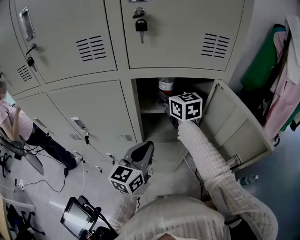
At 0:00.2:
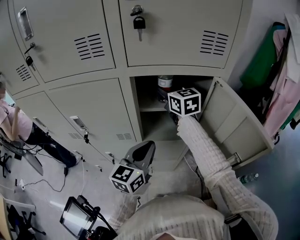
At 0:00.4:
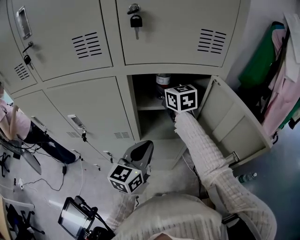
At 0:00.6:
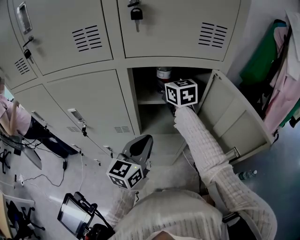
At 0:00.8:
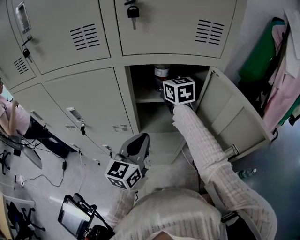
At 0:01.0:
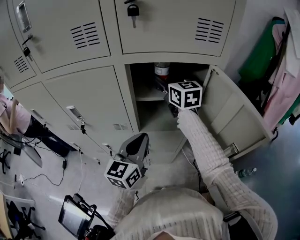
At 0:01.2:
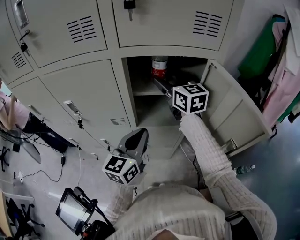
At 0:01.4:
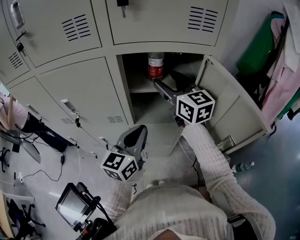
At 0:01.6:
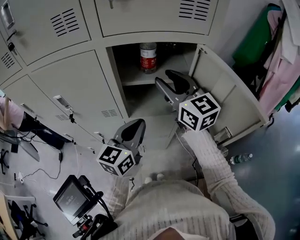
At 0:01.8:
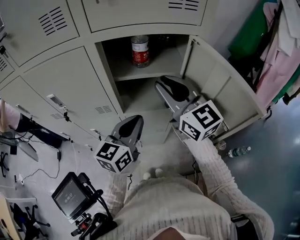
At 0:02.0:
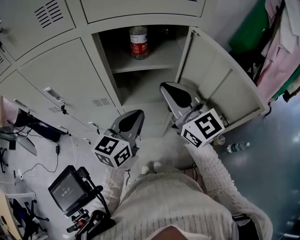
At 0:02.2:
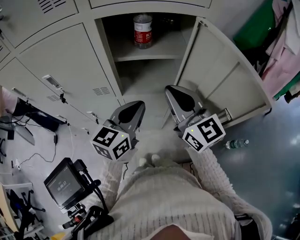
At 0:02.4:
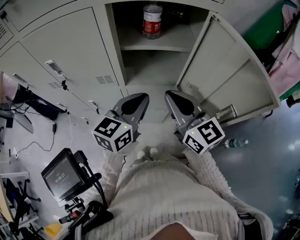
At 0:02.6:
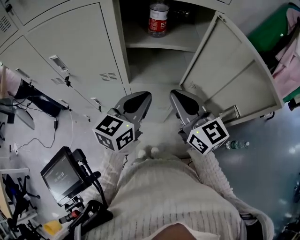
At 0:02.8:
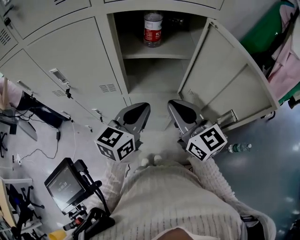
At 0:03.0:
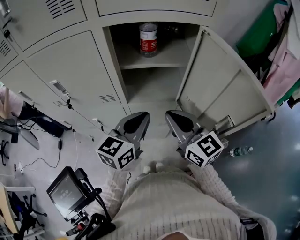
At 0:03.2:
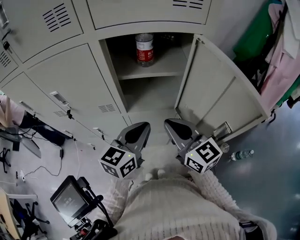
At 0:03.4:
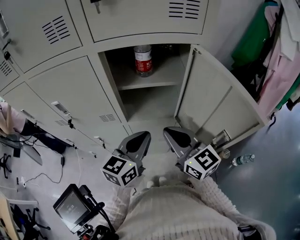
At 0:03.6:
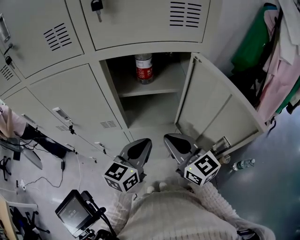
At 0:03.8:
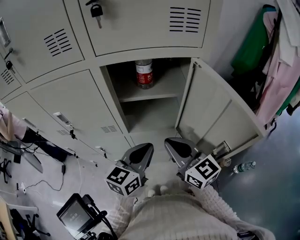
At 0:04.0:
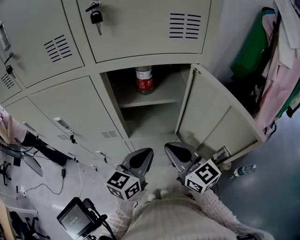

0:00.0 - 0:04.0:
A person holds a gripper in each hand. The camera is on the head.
0:00.0 - 0:01.4: The right gripper travels backward by roughly 10 cm.
0:01.4 - 0:02.6: The right gripper heads backward and downward, covering some 20 cm, and closes.
0:02.6 - 0:04.0: The grippers make only small movements.

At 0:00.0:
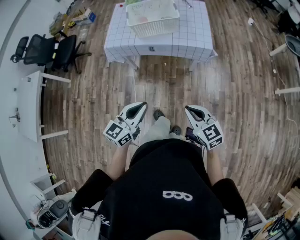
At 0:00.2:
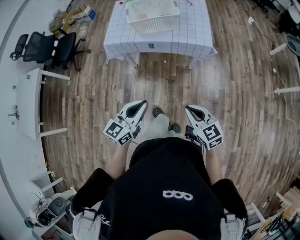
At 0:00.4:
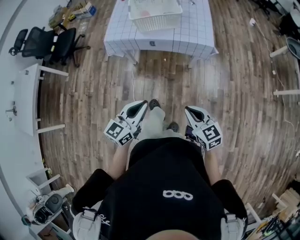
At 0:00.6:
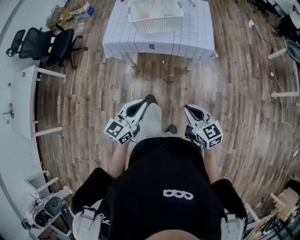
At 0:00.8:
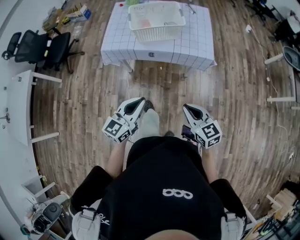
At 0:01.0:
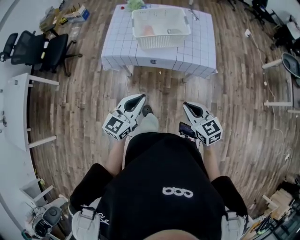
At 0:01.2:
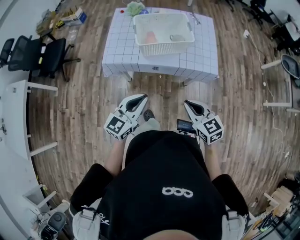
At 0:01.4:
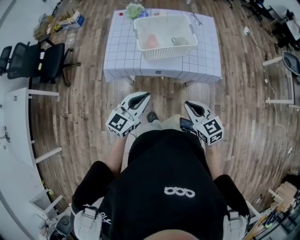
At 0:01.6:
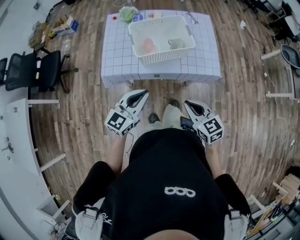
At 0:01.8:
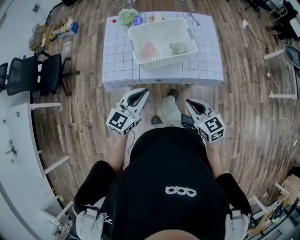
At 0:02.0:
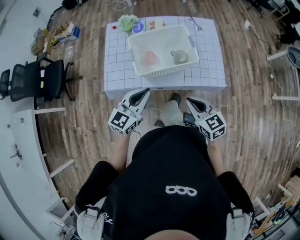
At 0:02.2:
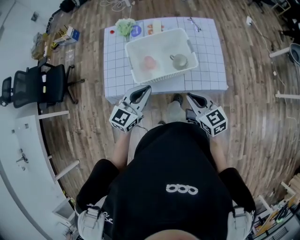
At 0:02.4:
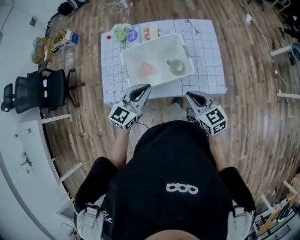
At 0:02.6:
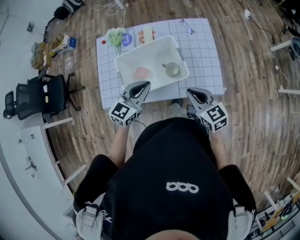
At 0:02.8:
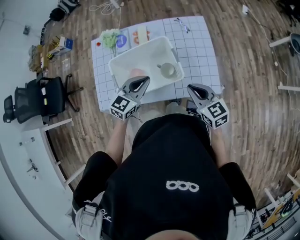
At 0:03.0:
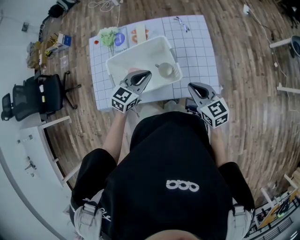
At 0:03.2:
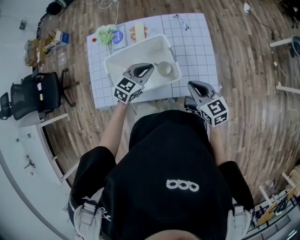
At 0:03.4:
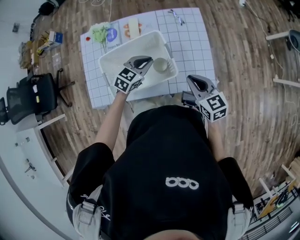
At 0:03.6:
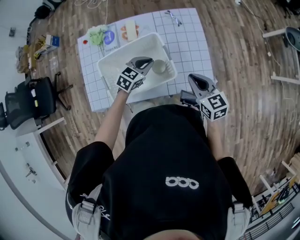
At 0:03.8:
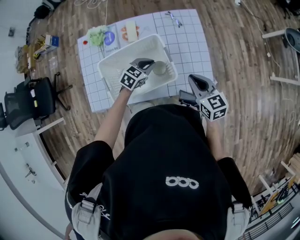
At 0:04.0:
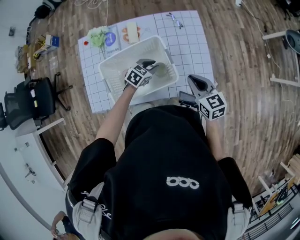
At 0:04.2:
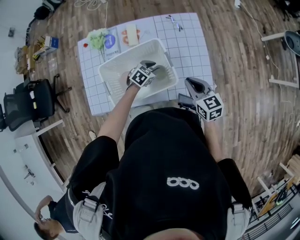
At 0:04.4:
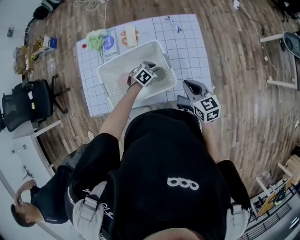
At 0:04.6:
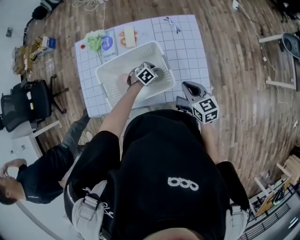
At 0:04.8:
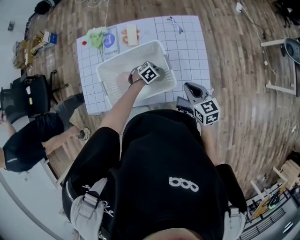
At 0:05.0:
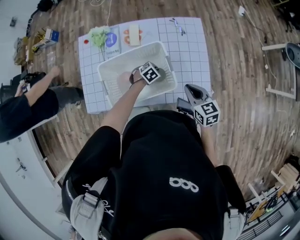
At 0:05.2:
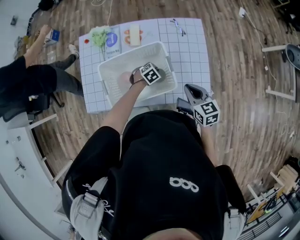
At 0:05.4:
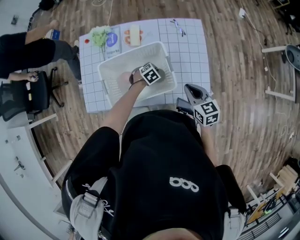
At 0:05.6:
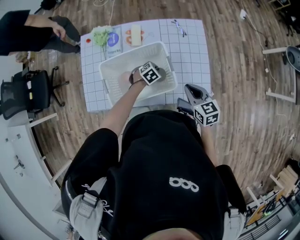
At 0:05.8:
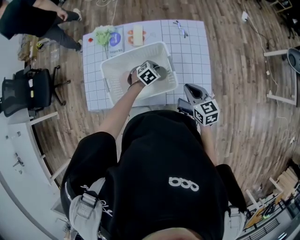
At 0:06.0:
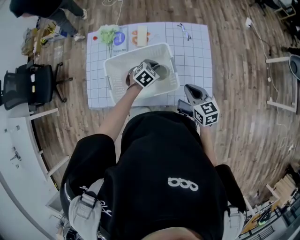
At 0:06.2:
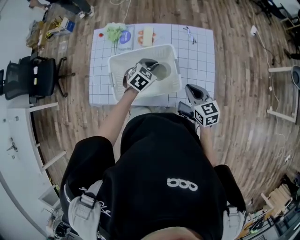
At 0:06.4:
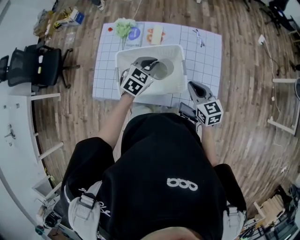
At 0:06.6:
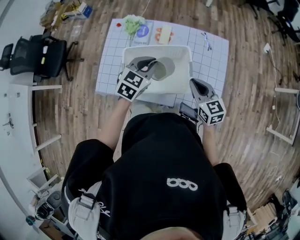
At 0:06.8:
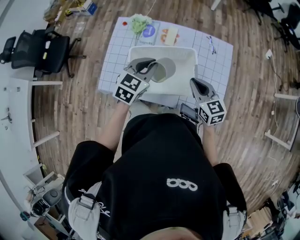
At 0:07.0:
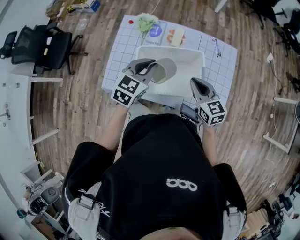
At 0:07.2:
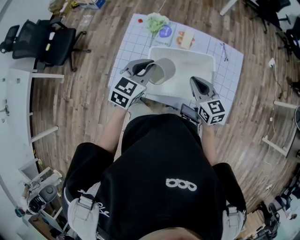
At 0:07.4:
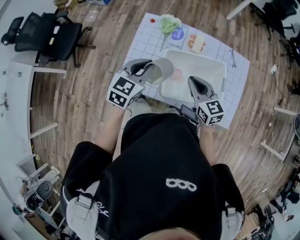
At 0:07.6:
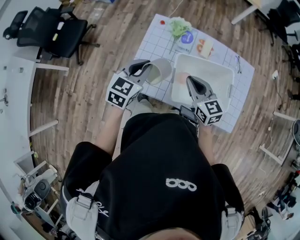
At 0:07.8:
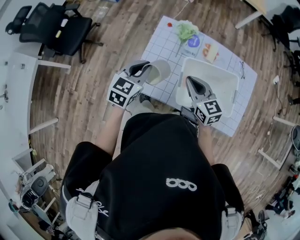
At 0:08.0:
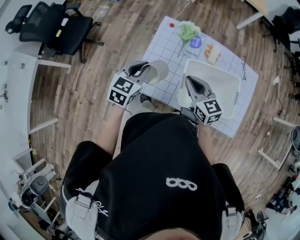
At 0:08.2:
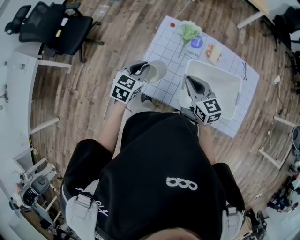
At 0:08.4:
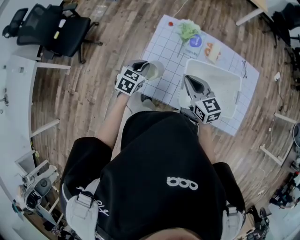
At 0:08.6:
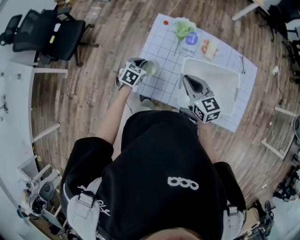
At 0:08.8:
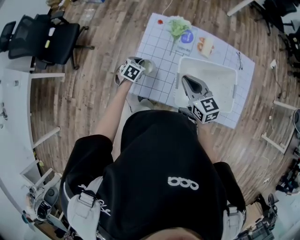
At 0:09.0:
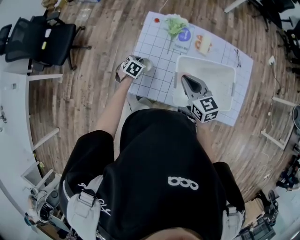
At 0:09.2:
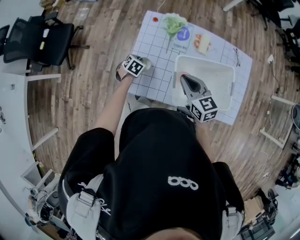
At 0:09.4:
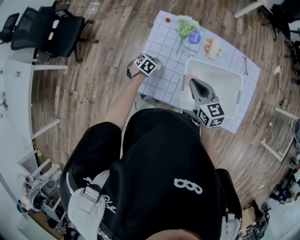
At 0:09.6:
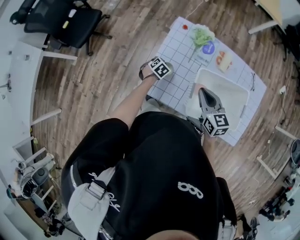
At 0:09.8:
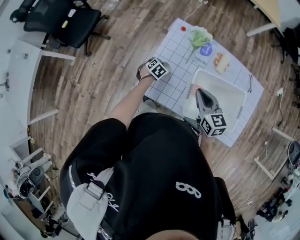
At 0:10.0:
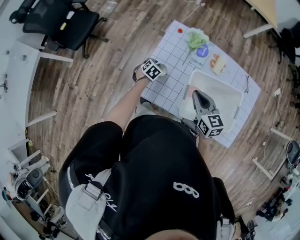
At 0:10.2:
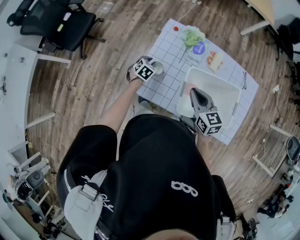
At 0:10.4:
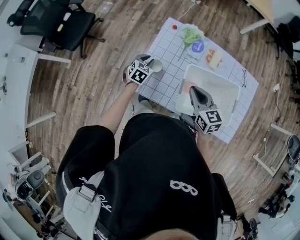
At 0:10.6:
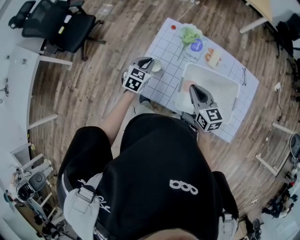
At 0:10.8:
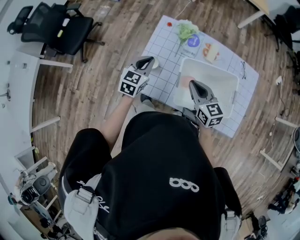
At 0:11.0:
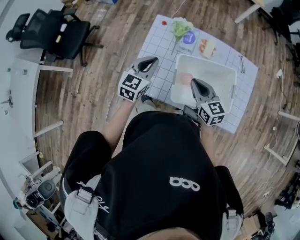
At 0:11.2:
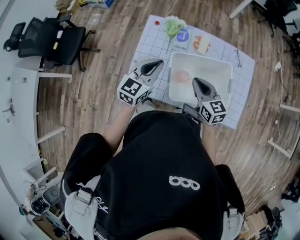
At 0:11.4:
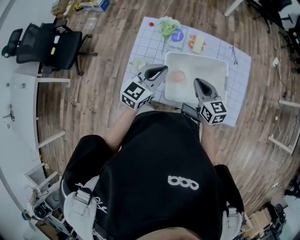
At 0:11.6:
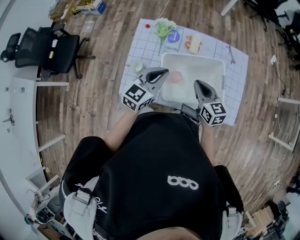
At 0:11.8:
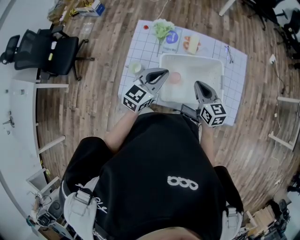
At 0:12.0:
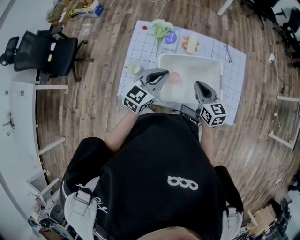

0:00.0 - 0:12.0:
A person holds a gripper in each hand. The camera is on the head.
0:00.0 - 0:01.6: The right gripper travels forward and to the left by roughly 30 cm. Meanwhile the left gripper moves forward, about 35 cm.
0:01.6 - 0:03.0: The grippers both shift forward by approximately 30 cm. The left gripper swivels roughly 20 degrees.
0:03.0 - 0:04.4: The right gripper moves approximately 5 cm, while the left gripper travels downward and forward by some 25 cm, tilts its fingers approximately 30 degrees downward, and opens its fingers.
0:04.4 - 0:06.0: The left gripper is displaced upward by approximately 10 cm.
0:06.0 - 0:07.6: The right gripper heads to the left, covering roughly 35 cm, and changes its angle by about 20 degrees. The left gripper shifts some 40 cm to the left and upward, and rotates approximately 40 degrees.
0:07.6 - 0:09.0: The left gripper travels downward by some 30 cm, and tilts its fingers roughly 30 degrees downward. Meanwhile the right gripper changes place by about 5 cm.
0:09.0 - 0:10.4: The left gripper moves upward, roughly 10 cm.
0:10.4 - 0:12.0: The right gripper is displaced to the right by roughly 15 cm. Meanwhile the left gripper shifts about 30 cm to the right, upward and backward, and angles its fingers upward, by some 30 degrees.

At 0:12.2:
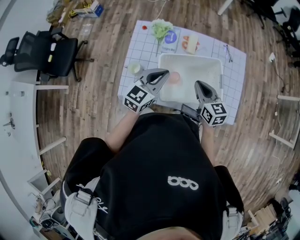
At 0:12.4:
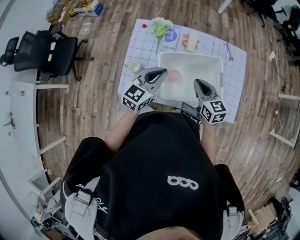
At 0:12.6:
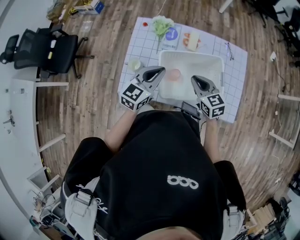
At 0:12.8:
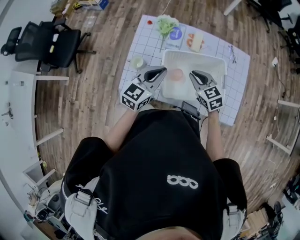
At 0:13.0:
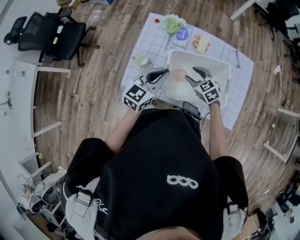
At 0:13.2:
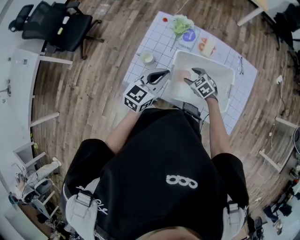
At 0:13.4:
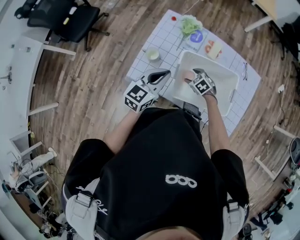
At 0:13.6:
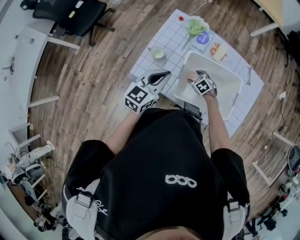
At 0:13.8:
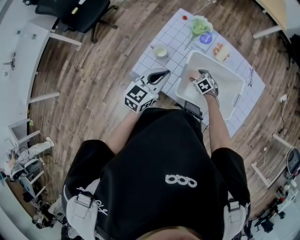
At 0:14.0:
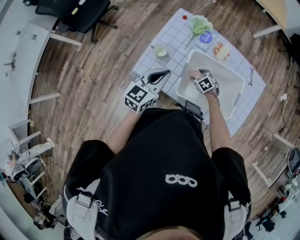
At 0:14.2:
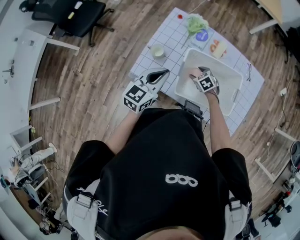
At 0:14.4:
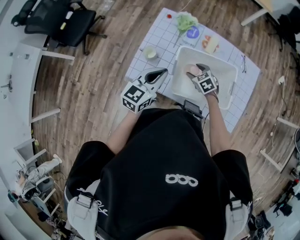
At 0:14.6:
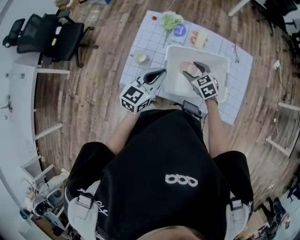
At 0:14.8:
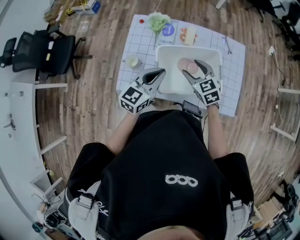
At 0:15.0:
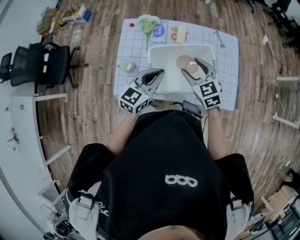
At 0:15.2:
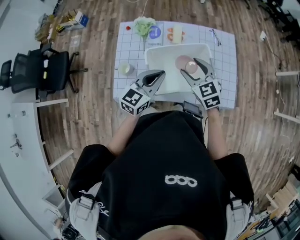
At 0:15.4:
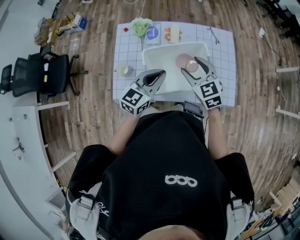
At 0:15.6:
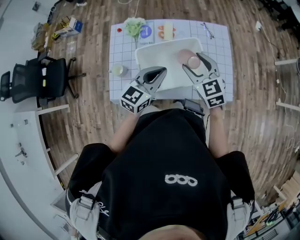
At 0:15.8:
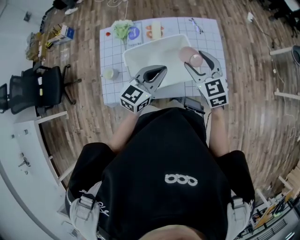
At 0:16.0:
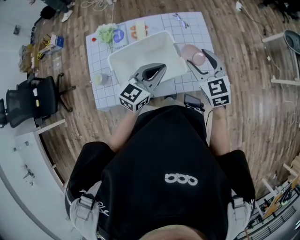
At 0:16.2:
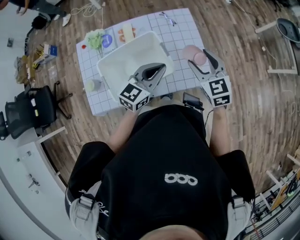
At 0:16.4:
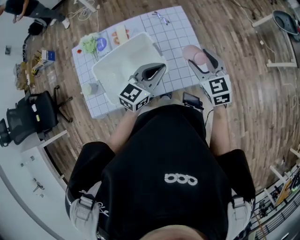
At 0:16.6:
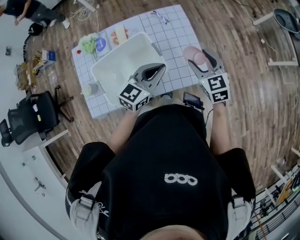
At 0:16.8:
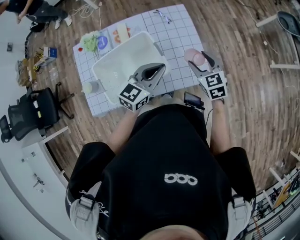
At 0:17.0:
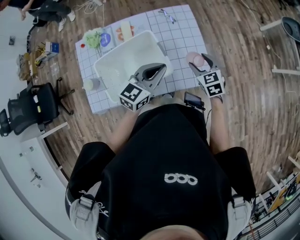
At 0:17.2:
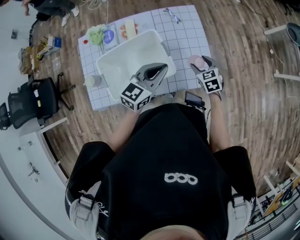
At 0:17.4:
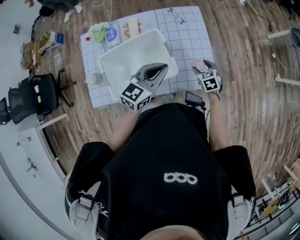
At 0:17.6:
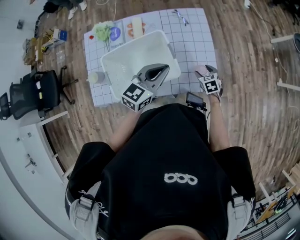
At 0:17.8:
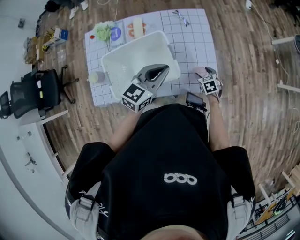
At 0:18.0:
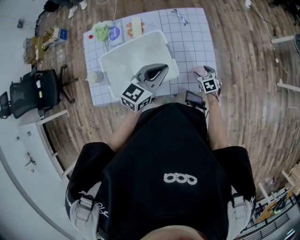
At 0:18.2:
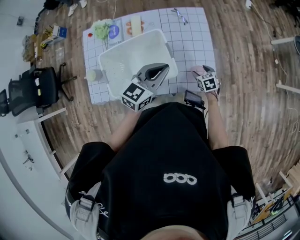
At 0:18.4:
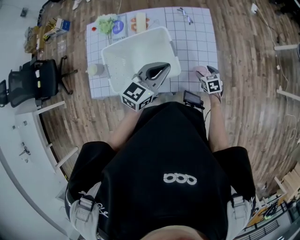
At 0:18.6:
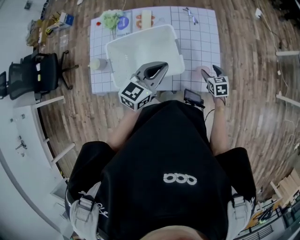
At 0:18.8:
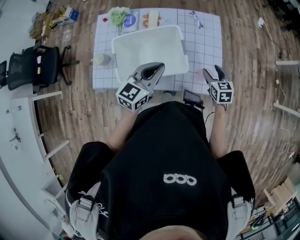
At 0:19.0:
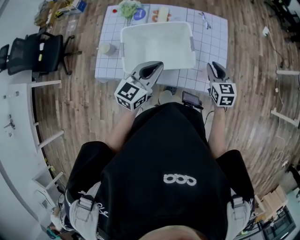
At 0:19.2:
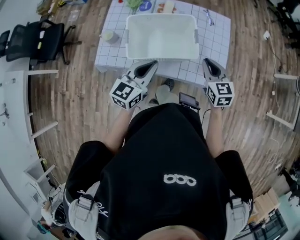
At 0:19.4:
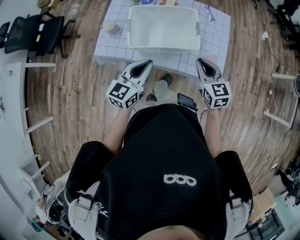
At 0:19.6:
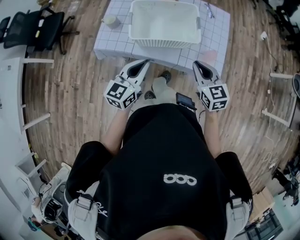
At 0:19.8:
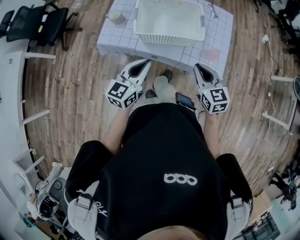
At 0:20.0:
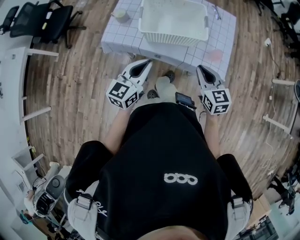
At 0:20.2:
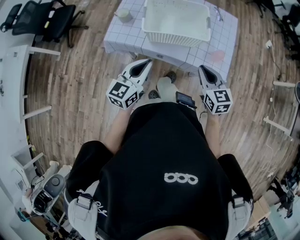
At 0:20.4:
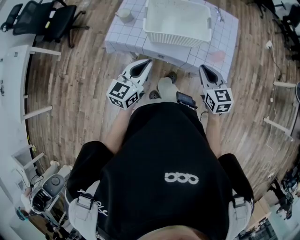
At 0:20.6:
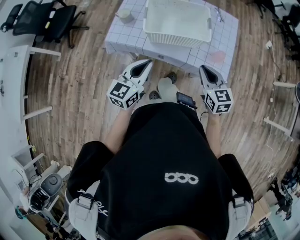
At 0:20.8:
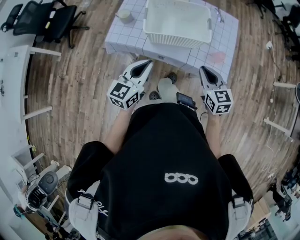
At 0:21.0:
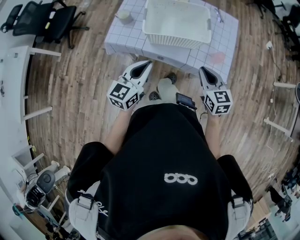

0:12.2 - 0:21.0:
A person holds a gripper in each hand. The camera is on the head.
0:12.2 - 0:13.6: The right gripper moves downward, roughly 25 cm, points its fingers about 40 degrees further downward, and opens its fingers; the left gripper shifts by some 10 cm, and swivels approximately 20 degrees.
0:13.6 - 0:15.2: The right gripper goes approximately 30 cm upward, and tips its fingers upward by approximately 30 degrees; the left gripper ends up about 15 cm from where it was, and changes its angle by roughly 30 degrees.
0:15.2 - 0:16.6: The grippers both shift to the right by some 30 cm. The right gripper changes its angle by roughly 20 degrees, while the left gripper swivels approximately 20 degrees.
0:16.6 - 0:18.0: The right gripper shifts approximately 25 cm downward, and rotates about 30 degrees.
0:18.0 - 0:19.6: The left gripper shifts approximately 30 cm backward and to the left, and swivels some 30 degrees; the right gripper heads upward, backward and to the left, covering some 35 cm, tips its fingers upward by some 30 degrees, and closes up.
0:19.6 - 0:21.0: The left gripper changes place by roughly 5 cm.
